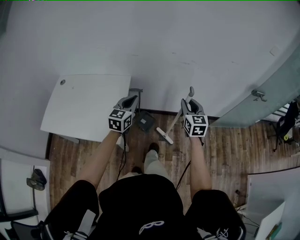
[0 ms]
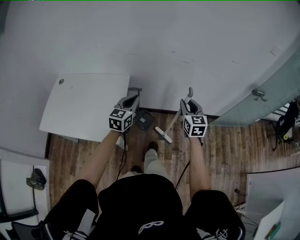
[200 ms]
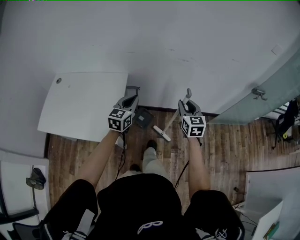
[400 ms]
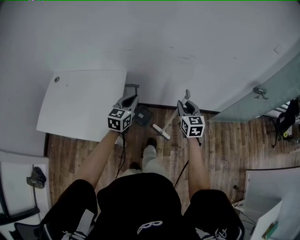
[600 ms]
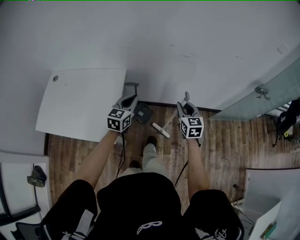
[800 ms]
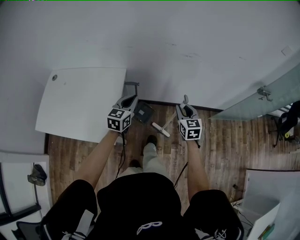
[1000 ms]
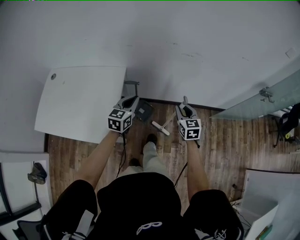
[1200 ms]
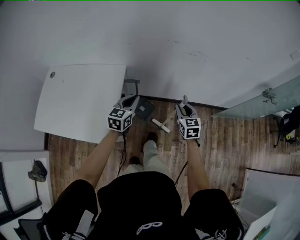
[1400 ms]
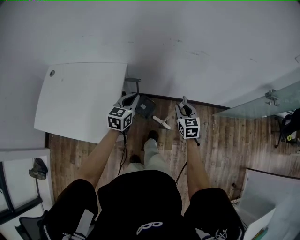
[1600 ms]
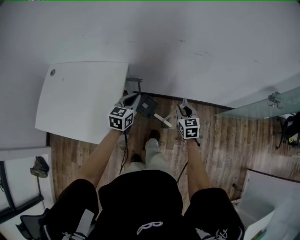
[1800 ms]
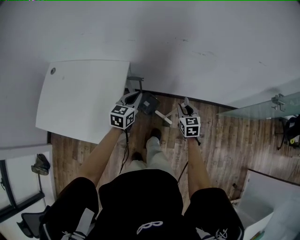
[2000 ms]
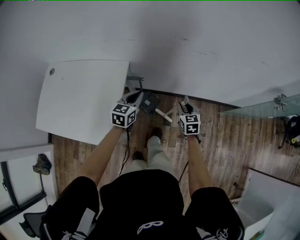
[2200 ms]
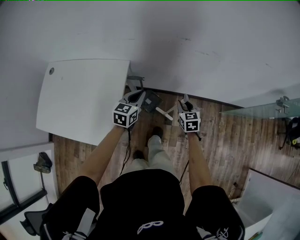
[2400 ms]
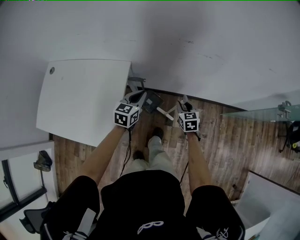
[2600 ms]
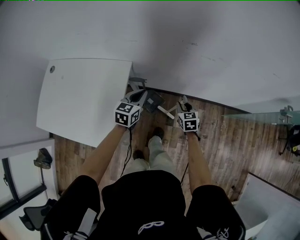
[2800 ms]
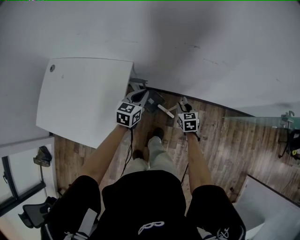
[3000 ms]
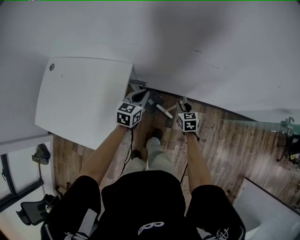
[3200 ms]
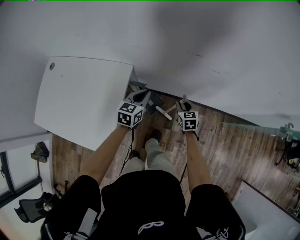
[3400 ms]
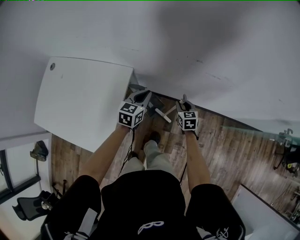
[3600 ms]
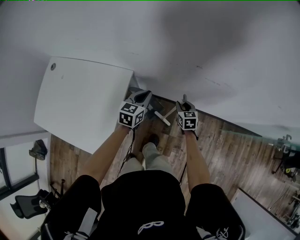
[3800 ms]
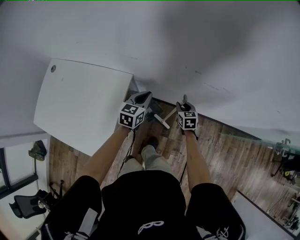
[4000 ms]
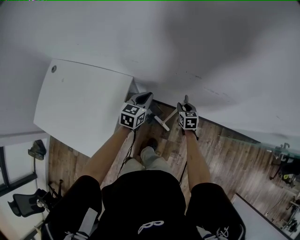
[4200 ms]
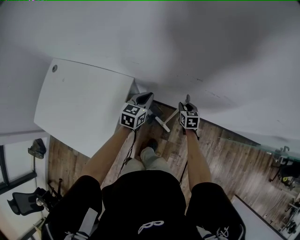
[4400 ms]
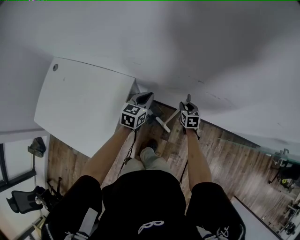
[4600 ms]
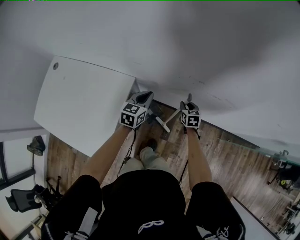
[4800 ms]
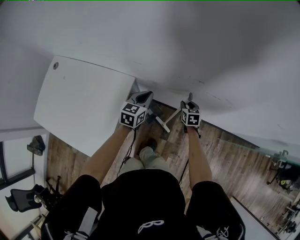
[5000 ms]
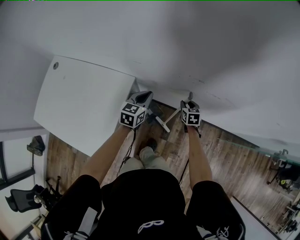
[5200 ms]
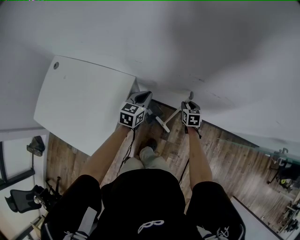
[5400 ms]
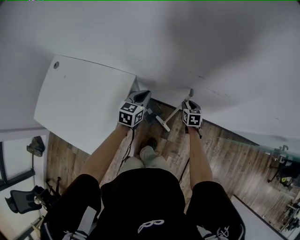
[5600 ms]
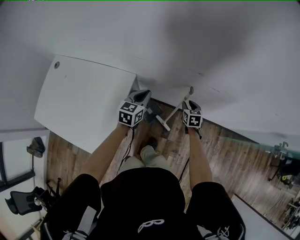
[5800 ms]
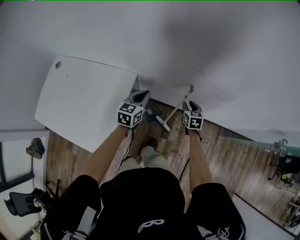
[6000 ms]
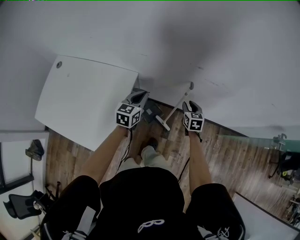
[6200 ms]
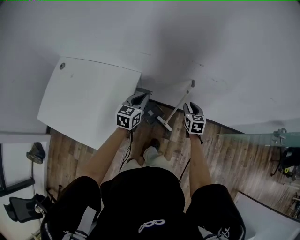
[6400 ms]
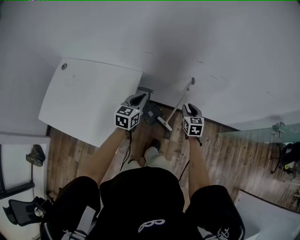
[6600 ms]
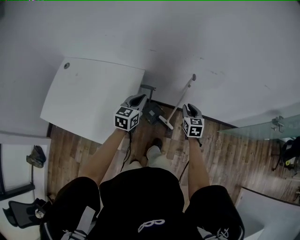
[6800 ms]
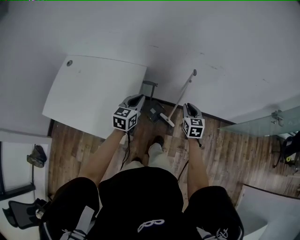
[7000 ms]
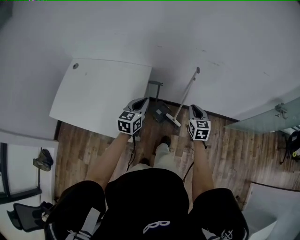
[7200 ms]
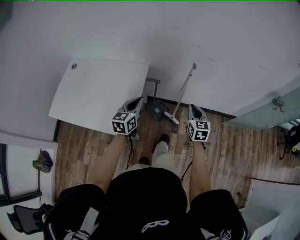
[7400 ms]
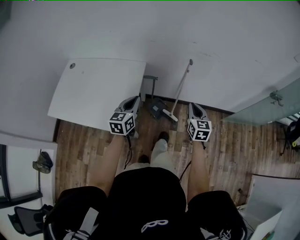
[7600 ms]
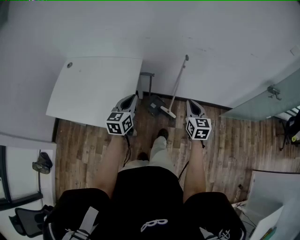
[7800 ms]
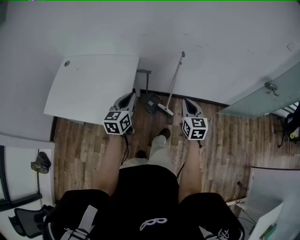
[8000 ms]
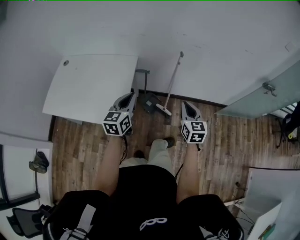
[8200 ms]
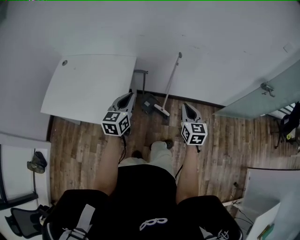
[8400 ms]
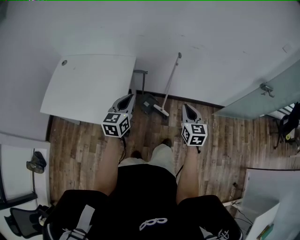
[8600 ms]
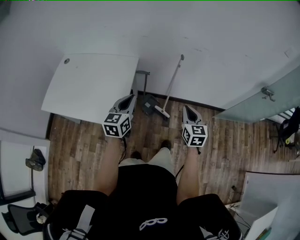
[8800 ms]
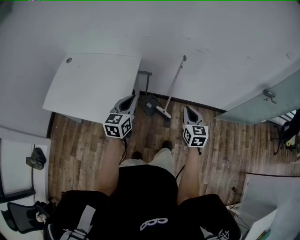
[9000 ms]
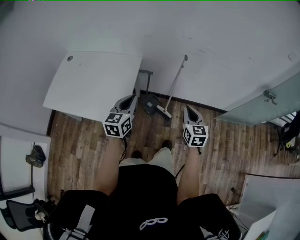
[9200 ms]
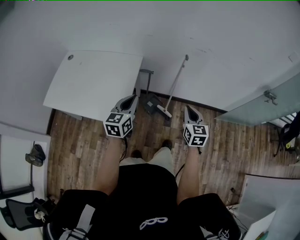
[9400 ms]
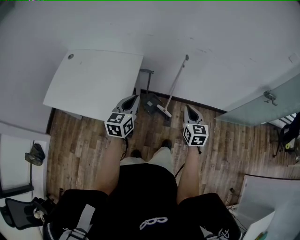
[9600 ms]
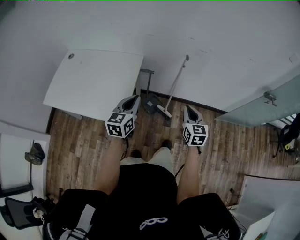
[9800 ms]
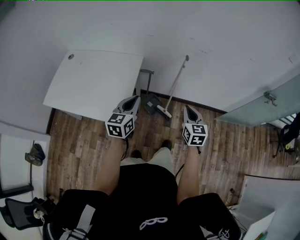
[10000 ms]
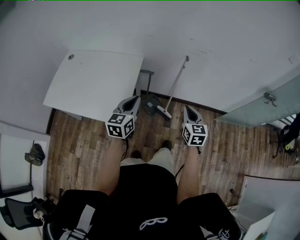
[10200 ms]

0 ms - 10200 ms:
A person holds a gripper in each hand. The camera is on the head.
0 ms - 1400 ms: Both grippers move downward and forward, some 15 cm.
1400 ms - 3000 ms: The right gripper moves downward and forward, roughly 20 cm. Meanwhile the left gripper heads forward and downward, covering approximately 15 cm.
3000 ms - 4400 ms: The grippers both shift forward by about 15 cm.
4400 ms - 5800 ms: The grippers make only small movements.
5800 ms - 7200 ms: The left gripper is displaced backward by some 25 cm. Meanwhile the right gripper heads backward and upward, covering some 35 cm, and rotates roughly 20 degrees.
7200 ms - 8800 ms: Both grippers move backward and upward, about 15 cm.
8800 ms - 10200 ms: There are only small adjustments of the grippers.

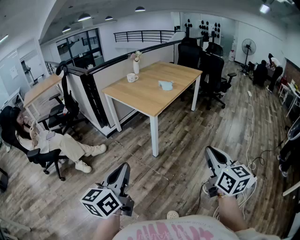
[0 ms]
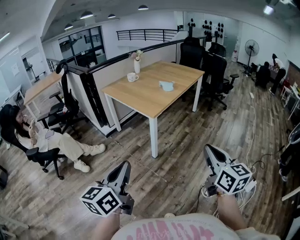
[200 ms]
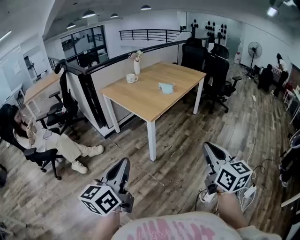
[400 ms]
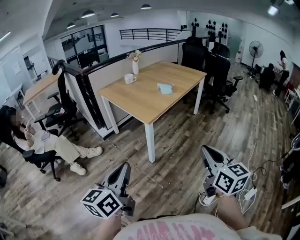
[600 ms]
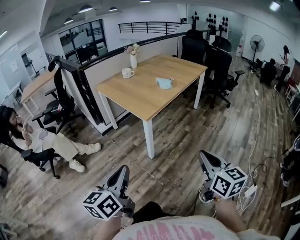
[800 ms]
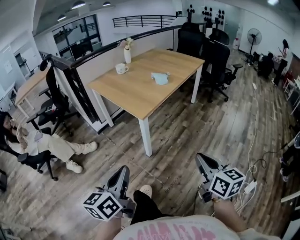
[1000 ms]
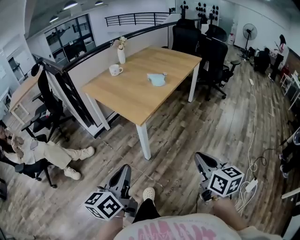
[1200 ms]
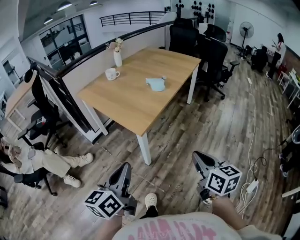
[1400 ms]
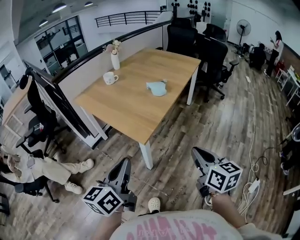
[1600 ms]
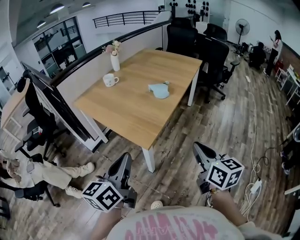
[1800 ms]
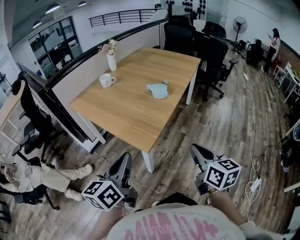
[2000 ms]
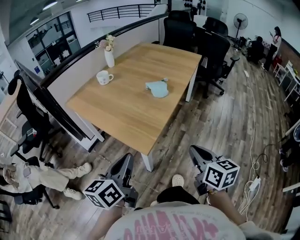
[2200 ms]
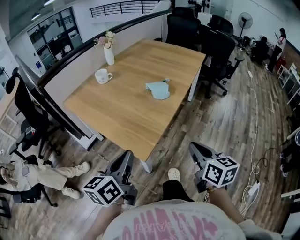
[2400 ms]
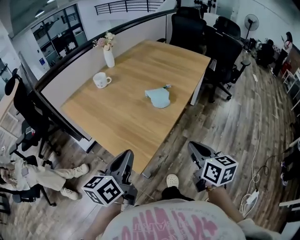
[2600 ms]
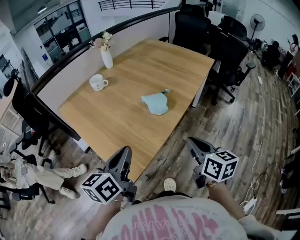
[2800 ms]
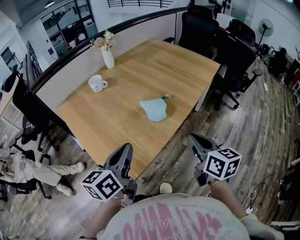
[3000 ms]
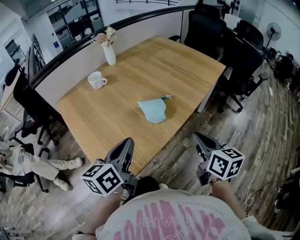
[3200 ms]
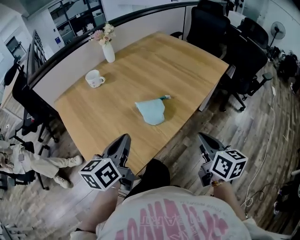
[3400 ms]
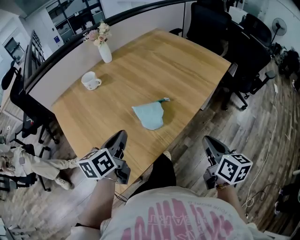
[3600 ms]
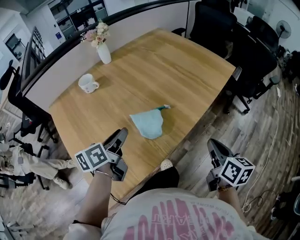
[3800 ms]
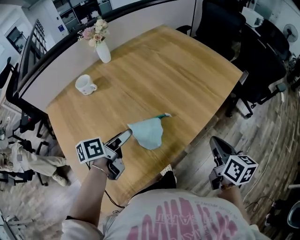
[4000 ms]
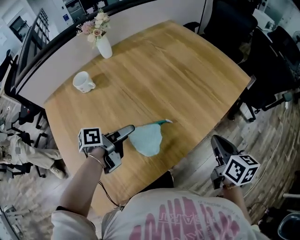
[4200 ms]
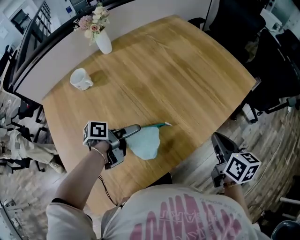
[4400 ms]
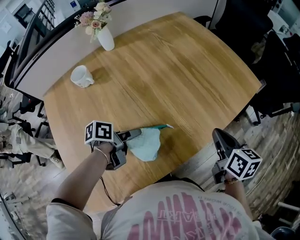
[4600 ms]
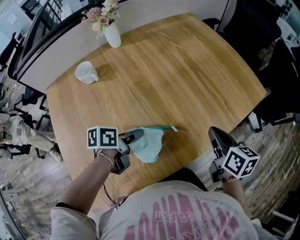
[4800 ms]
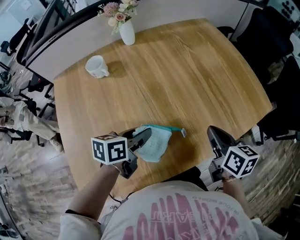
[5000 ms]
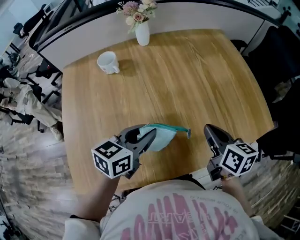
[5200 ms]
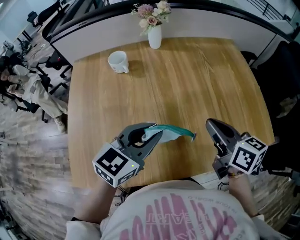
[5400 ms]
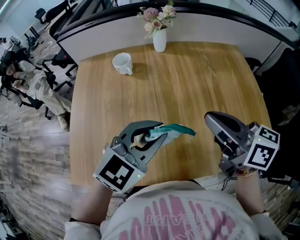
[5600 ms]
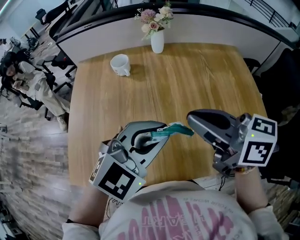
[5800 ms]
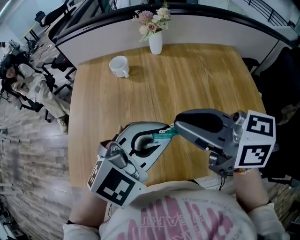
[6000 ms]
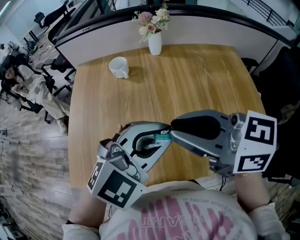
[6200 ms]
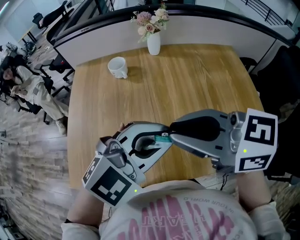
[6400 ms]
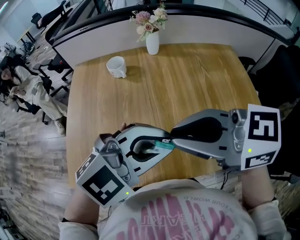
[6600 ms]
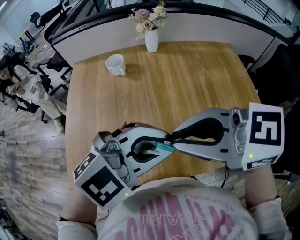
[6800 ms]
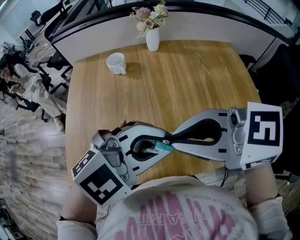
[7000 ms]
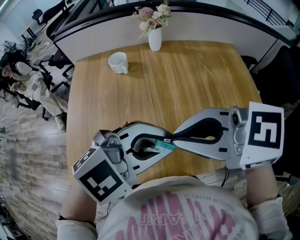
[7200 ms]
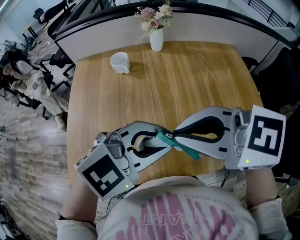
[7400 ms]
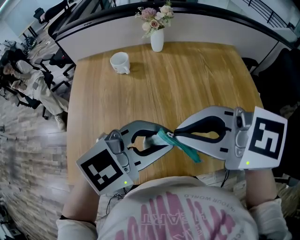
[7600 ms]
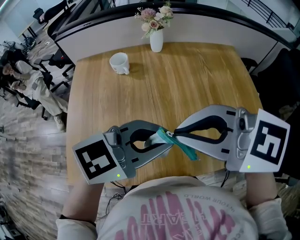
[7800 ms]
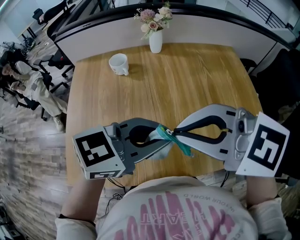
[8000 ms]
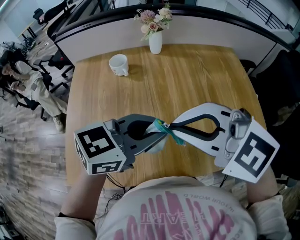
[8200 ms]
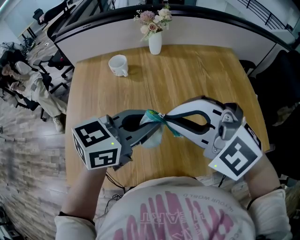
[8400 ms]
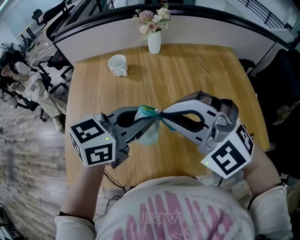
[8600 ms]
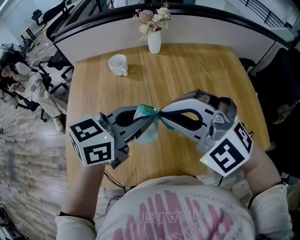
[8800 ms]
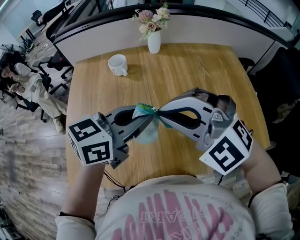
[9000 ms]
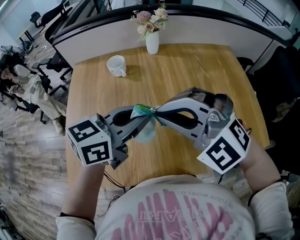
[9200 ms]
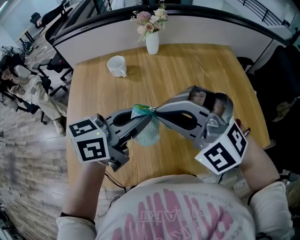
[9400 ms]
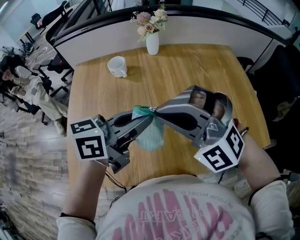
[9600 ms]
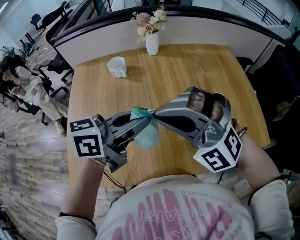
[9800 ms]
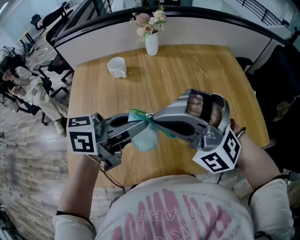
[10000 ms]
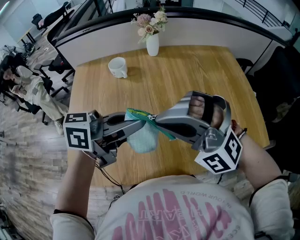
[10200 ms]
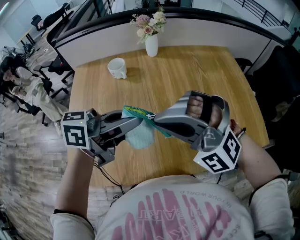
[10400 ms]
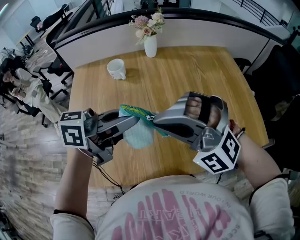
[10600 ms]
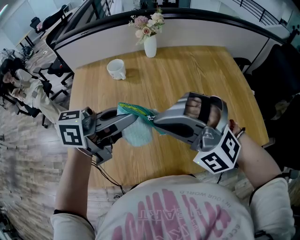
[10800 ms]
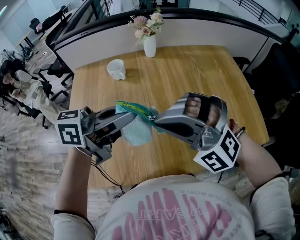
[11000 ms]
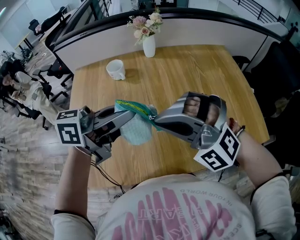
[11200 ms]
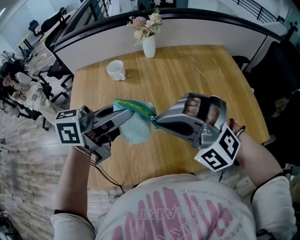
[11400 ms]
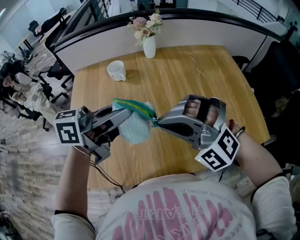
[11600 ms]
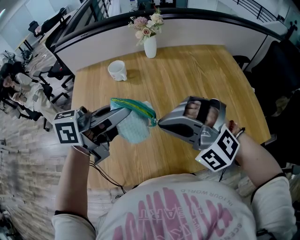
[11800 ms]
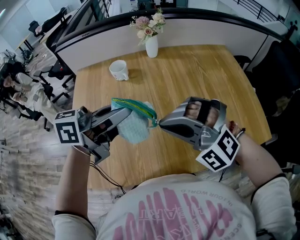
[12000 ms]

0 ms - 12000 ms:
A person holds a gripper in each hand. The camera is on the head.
0 ms - 1600 ms: The grippers both shift forward by some 40 cm.
1600 ms - 3000 ms: The grippers both shift forward by approximately 35 cm.
3000 ms - 4400 ms: The right gripper moves forward and to the right, about 35 cm. The left gripper shifts some 35 cm forward and downward, twists approximately 40 degrees counterclockwise, seen from behind, and opens up.
4400 ms - 6000 ms: The left gripper heads upward, covering roughly 25 cm, rotates around the line of its fingers by some 100 degrees, clockwise from behind, and closes its fingers; the right gripper moves roughly 30 cm, and rotates some 80 degrees.
6000 ms - 7600 ms: The right gripper moves approximately 5 cm, and changes its angle by roughly 30 degrees. The left gripper turns by about 20 degrees.
7600 ms - 9000 ms: The left gripper ends up some 10 cm from where it was, and changes its angle by approximately 40 degrees, while the right gripper ends up approximately 5 cm from where it was, and twists about 50 degrees counterclockwise, seen from behind.
9000 ms - 10400 ms: The right gripper changes its angle by some 20 degrees. The left gripper turns by about 20 degrees.
10400 ms - 12000 ms: The left gripper shifts by some 5 cm.

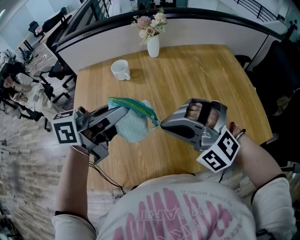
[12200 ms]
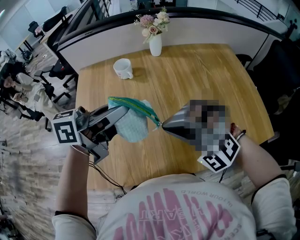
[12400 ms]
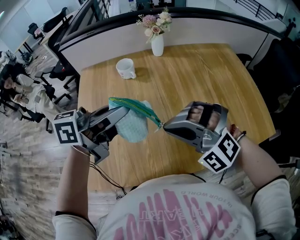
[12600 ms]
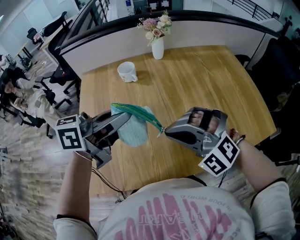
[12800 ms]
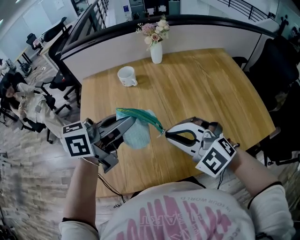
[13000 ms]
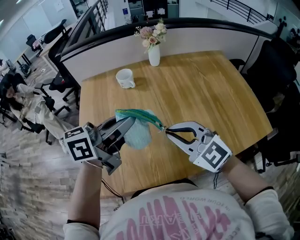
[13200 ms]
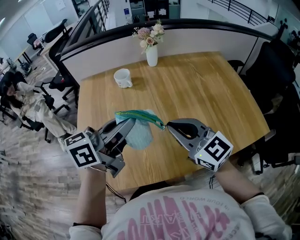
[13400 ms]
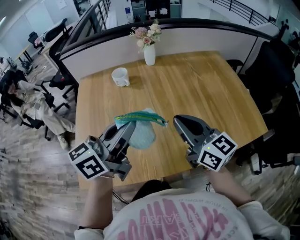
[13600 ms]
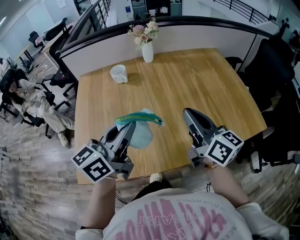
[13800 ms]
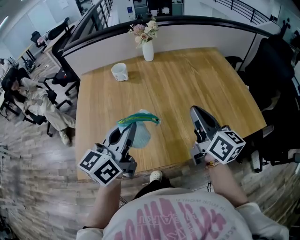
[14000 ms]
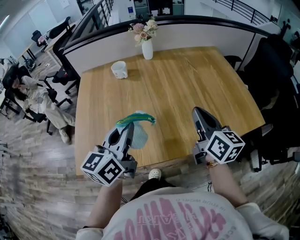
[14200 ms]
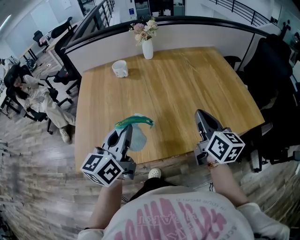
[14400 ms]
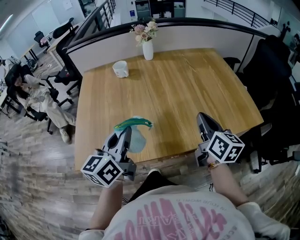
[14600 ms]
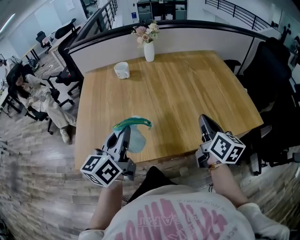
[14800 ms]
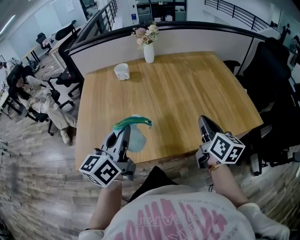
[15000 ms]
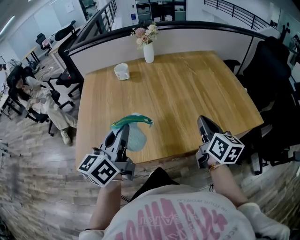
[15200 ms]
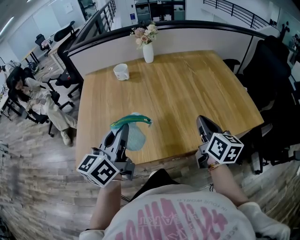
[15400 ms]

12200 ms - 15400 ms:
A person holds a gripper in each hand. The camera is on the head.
12200 ms - 13800 ms: The left gripper goes approximately 10 cm backward, and swivels about 30 degrees. Meanwhile the right gripper moves to the right, about 10 cm, and rolls clockwise, seen from behind, by about 100 degrees.
13800 ms - 15400 ms: The right gripper is displaced to the right, downward and backward by roughly 15 cm, and turns by some 20 degrees; the left gripper heads backward, covering some 5 cm.
